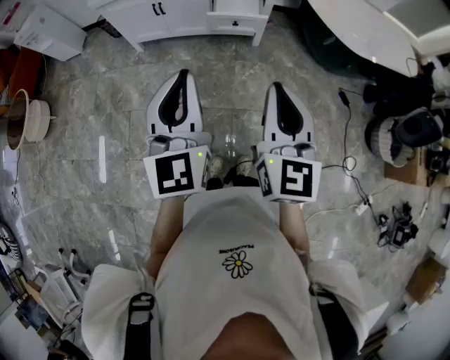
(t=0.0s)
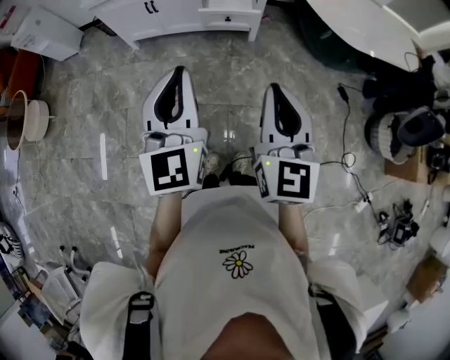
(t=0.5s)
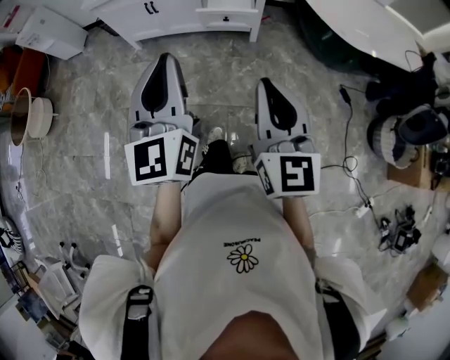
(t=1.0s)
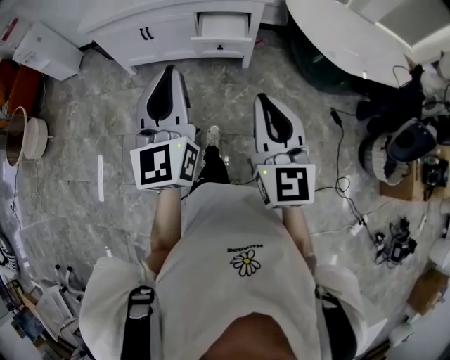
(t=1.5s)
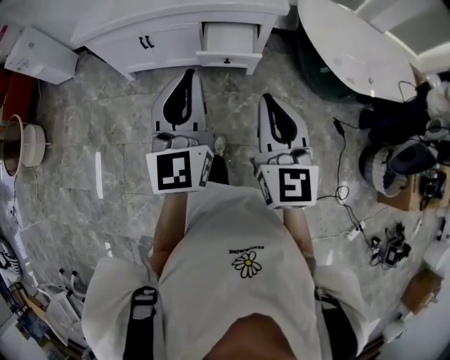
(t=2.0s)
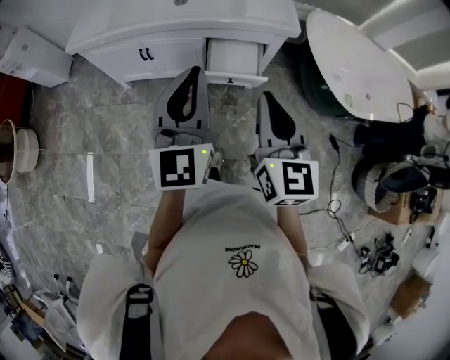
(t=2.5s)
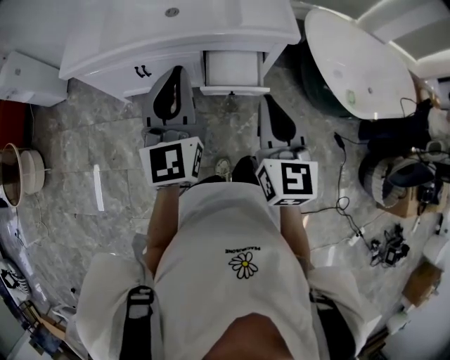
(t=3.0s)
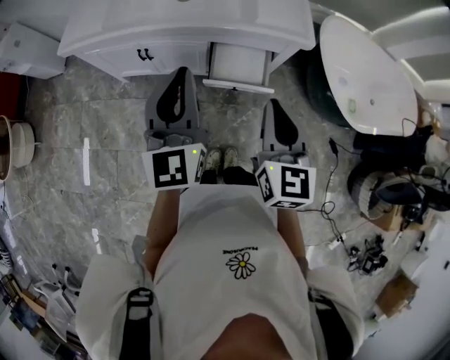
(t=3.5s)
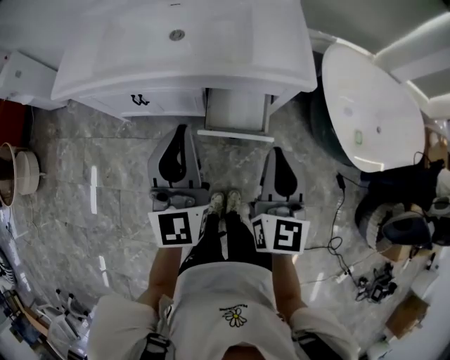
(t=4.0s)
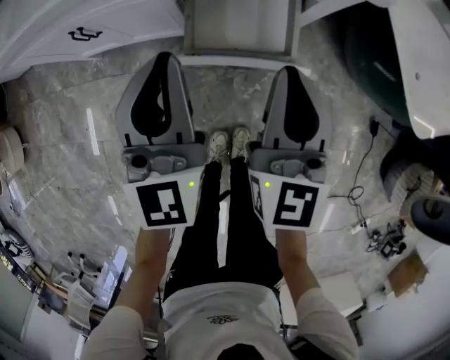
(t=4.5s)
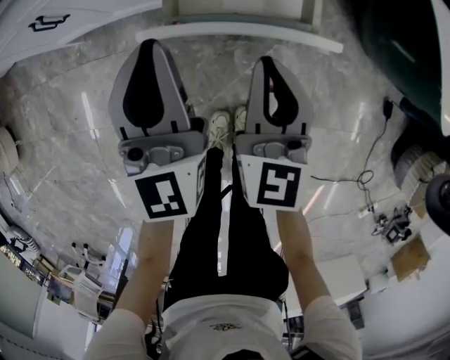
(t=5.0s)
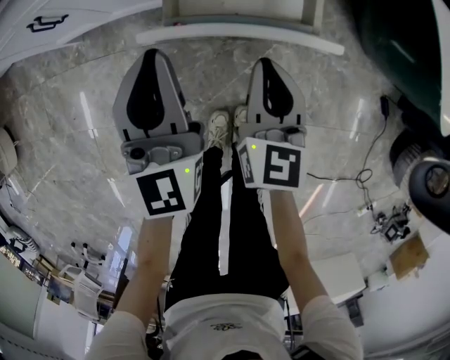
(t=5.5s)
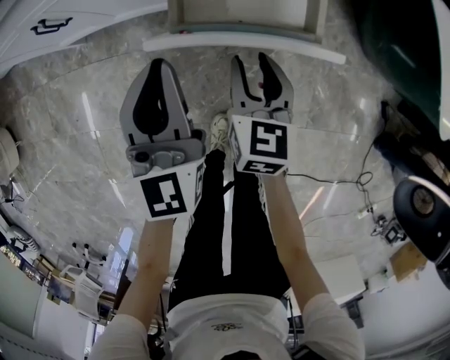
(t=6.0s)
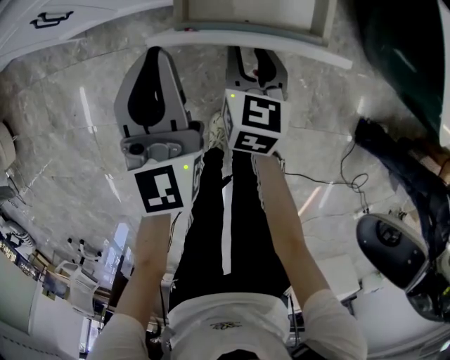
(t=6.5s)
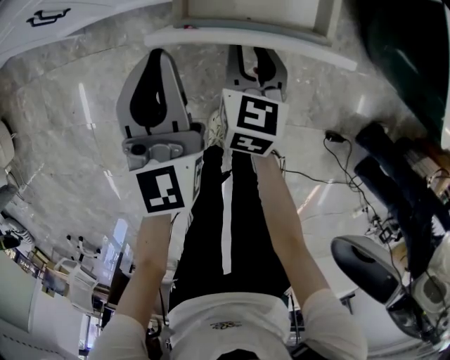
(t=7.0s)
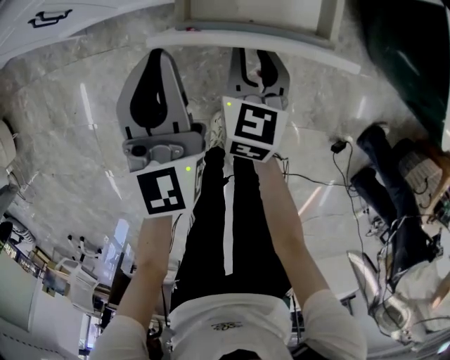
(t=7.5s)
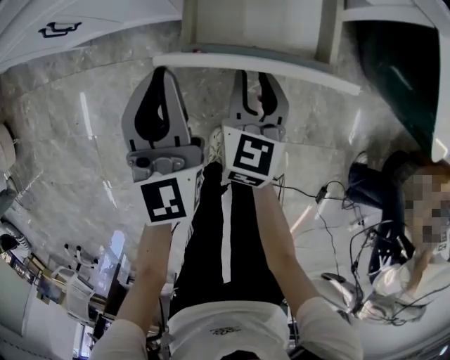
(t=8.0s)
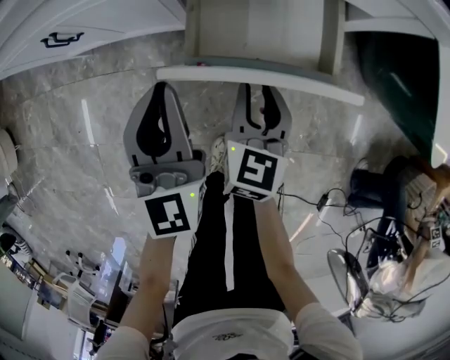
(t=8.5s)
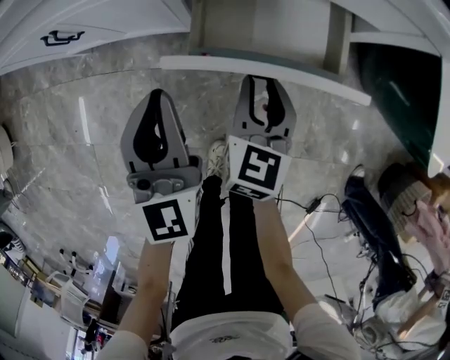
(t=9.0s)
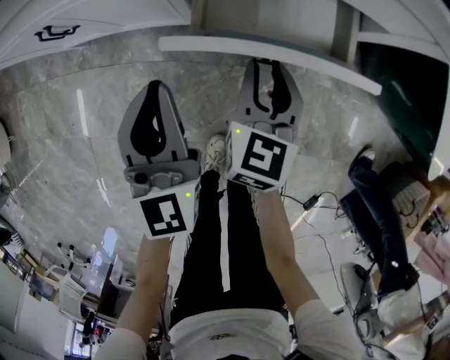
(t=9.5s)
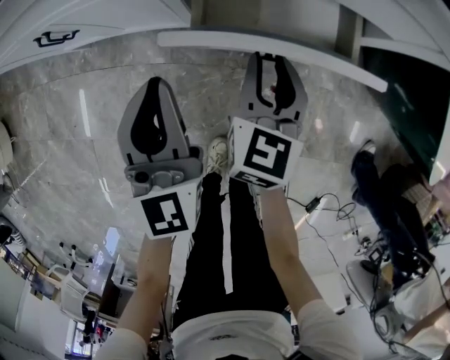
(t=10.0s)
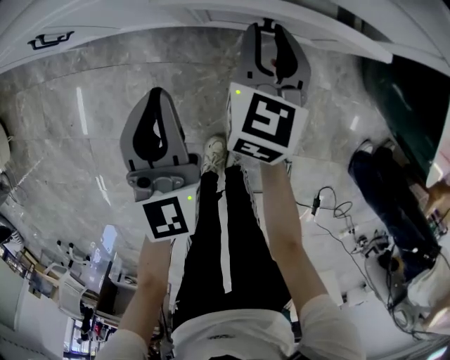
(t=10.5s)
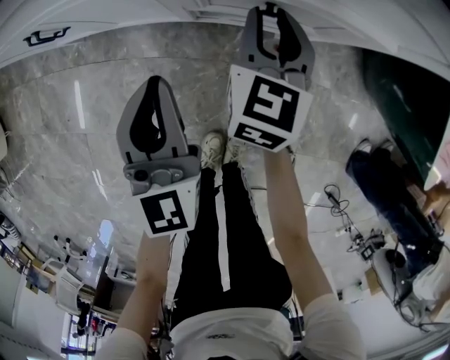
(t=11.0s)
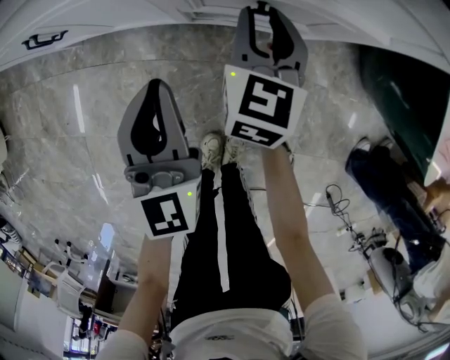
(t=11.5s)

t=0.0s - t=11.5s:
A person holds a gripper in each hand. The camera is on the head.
t=0.0s - t=2.0s: Both grippers move forward, about 20 cm.
t=2.0s - t=4.0s: The two grippers go approximately 25 cm forward.
t=4.0s - t=6.0s: Both grippers travel together downward, roughly 40 cm. The right gripper turns by some 20 degrees, and opens its fingers.
t=6.0s - t=7.5s: There are only small adjustments of the grippers.
t=7.5s - t=9.5s: The right gripper is displaced forward by about 5 cm.
t=9.5s - t=11.5s: The right gripper moves forward, some 10 cm.

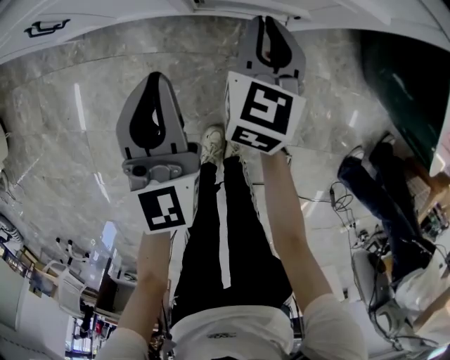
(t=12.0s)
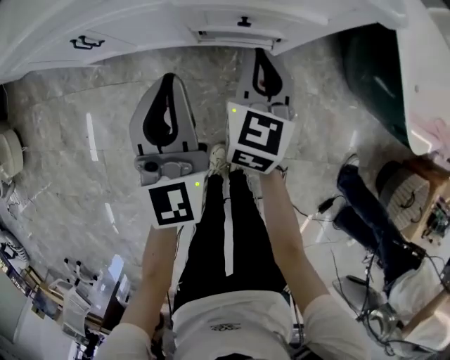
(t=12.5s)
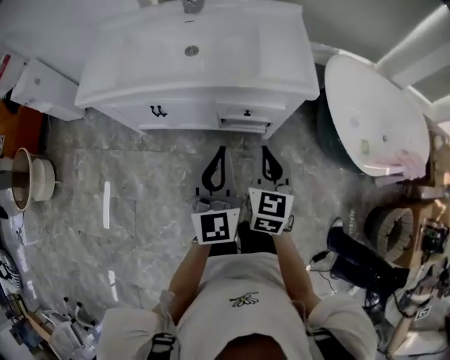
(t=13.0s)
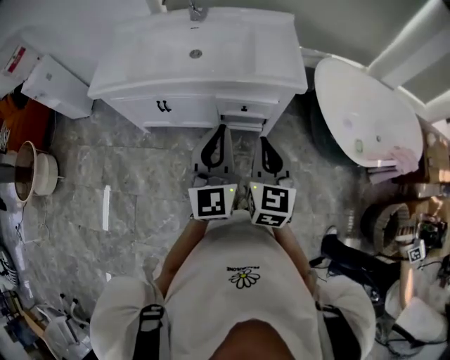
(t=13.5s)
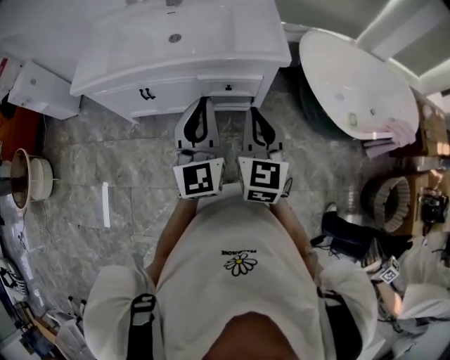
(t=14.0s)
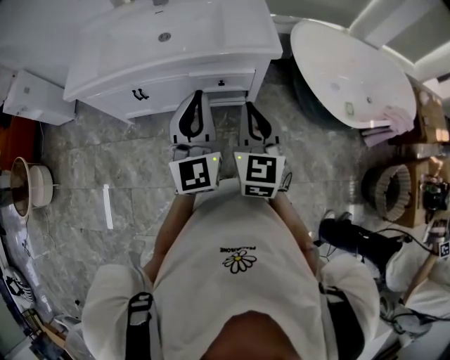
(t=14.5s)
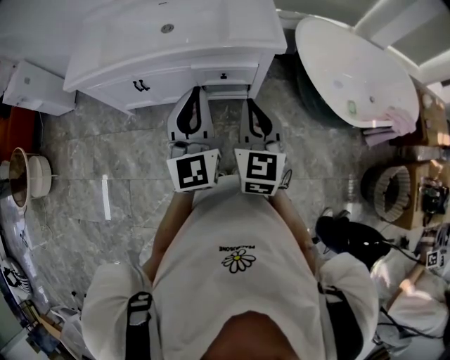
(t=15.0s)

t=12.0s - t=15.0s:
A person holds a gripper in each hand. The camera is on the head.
t=12.0s - t=13.5s: The left gripper shifts roughly 40 cm upward. The right gripper goes roughly 50 cm upward and backward.
t=13.5s - t=15.0s: The grippers stay close to where they were, moving slightly.

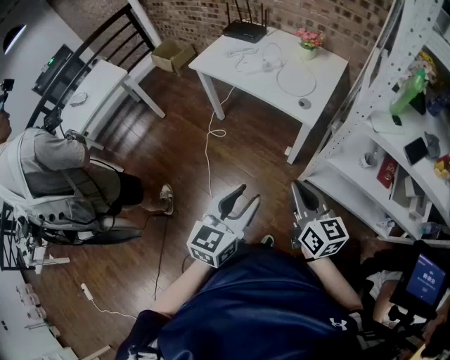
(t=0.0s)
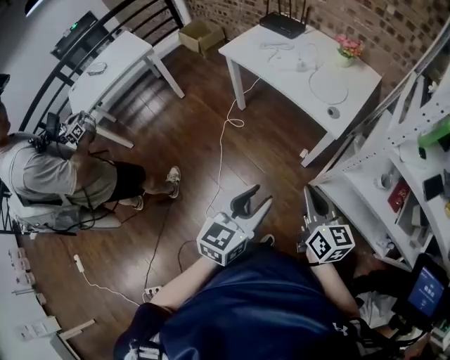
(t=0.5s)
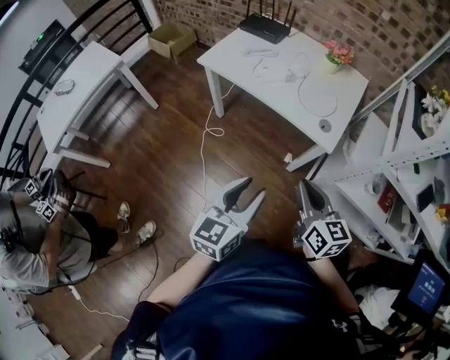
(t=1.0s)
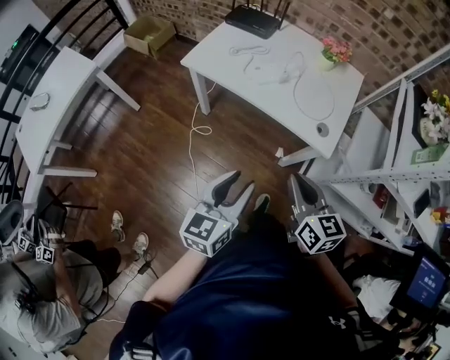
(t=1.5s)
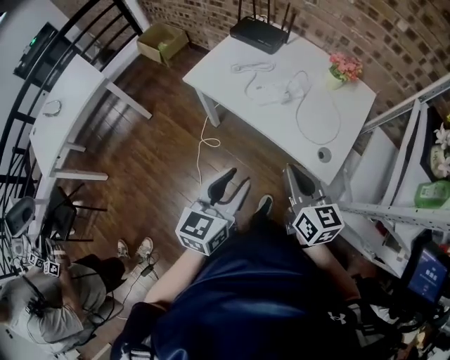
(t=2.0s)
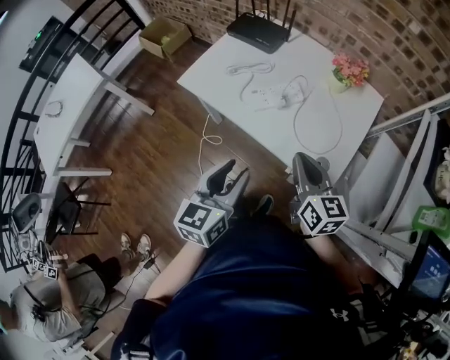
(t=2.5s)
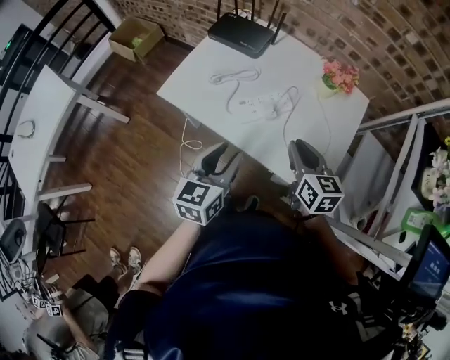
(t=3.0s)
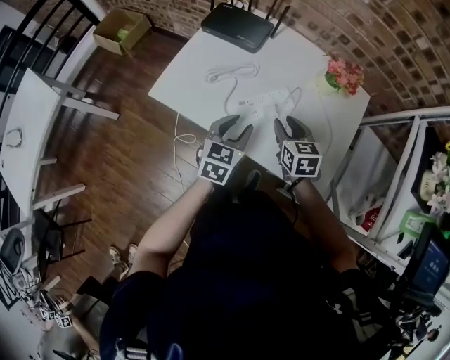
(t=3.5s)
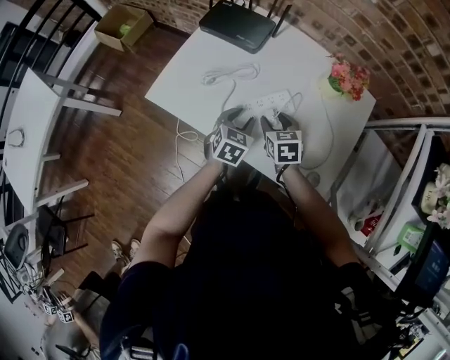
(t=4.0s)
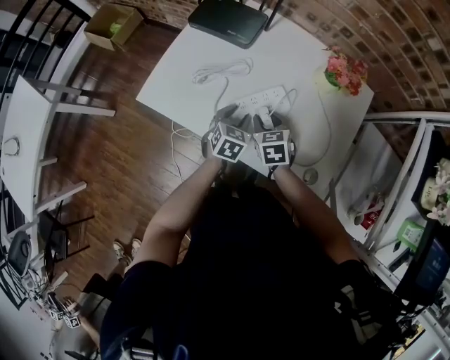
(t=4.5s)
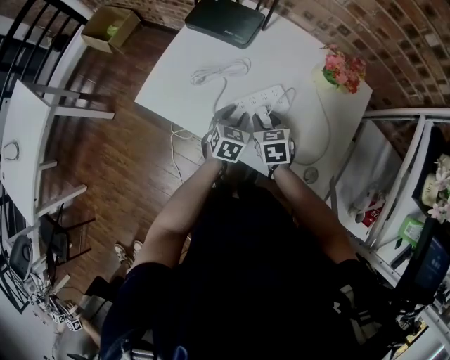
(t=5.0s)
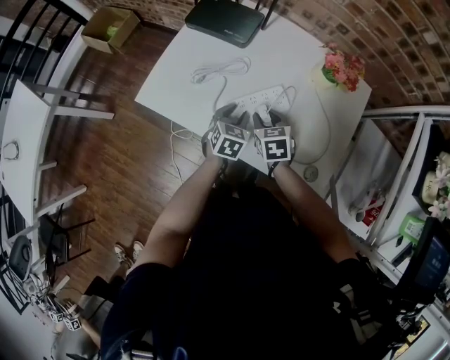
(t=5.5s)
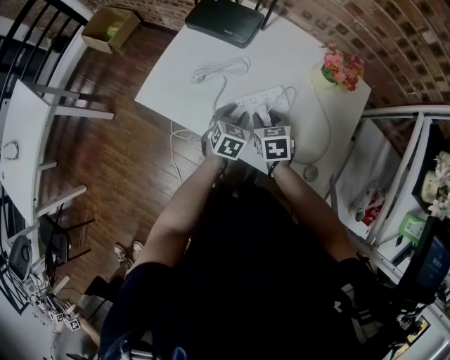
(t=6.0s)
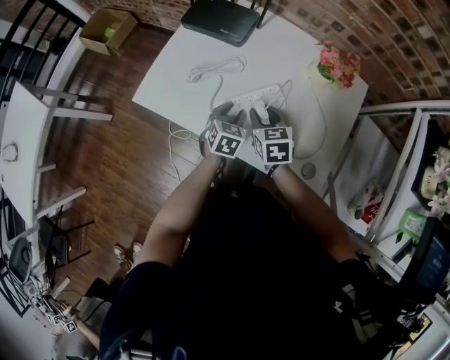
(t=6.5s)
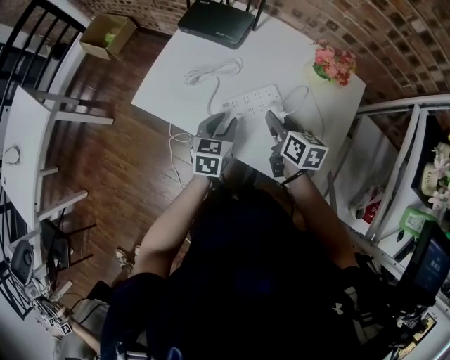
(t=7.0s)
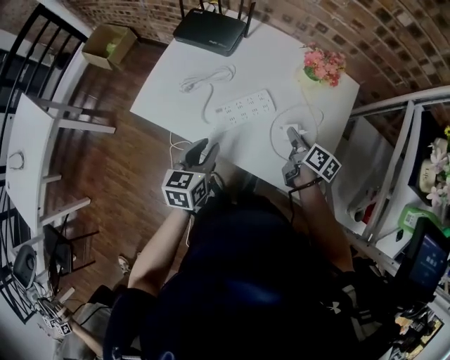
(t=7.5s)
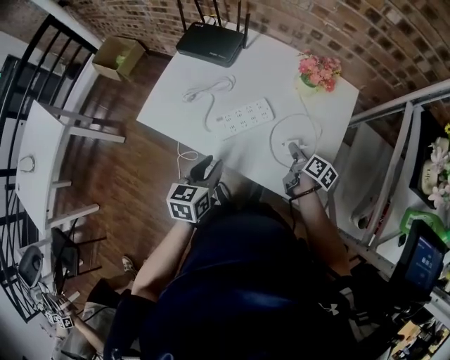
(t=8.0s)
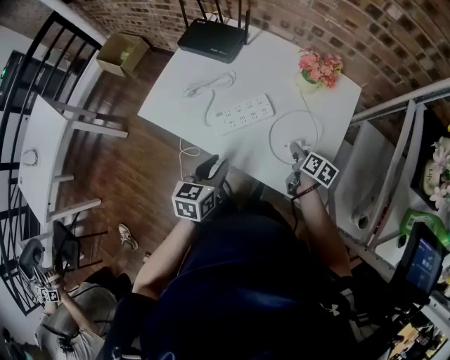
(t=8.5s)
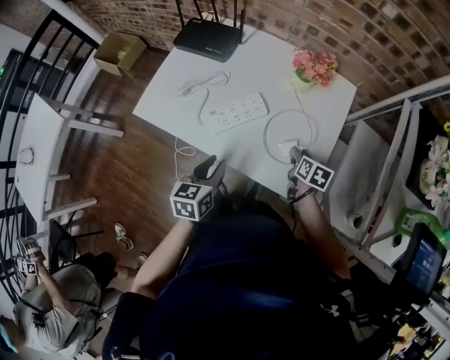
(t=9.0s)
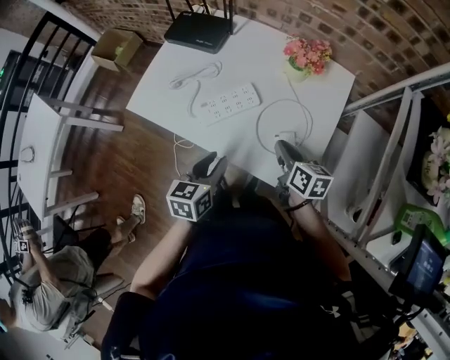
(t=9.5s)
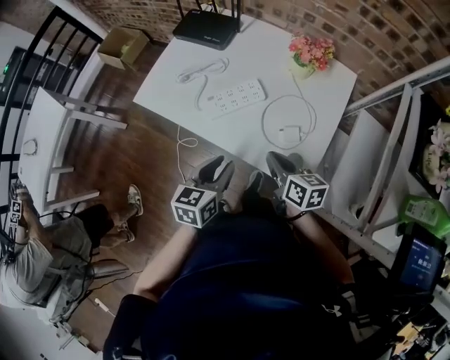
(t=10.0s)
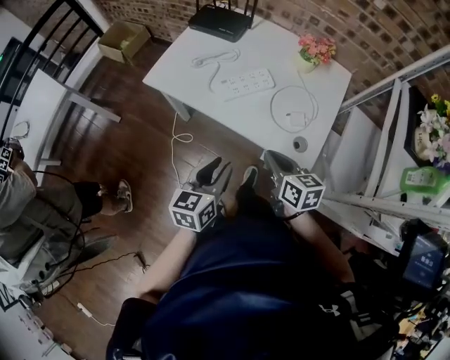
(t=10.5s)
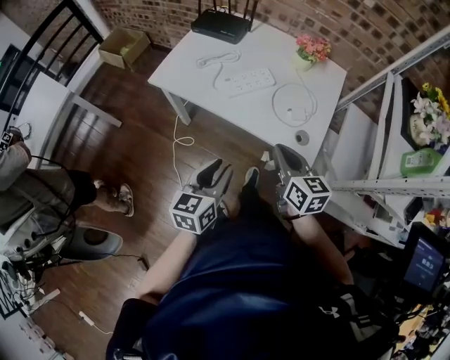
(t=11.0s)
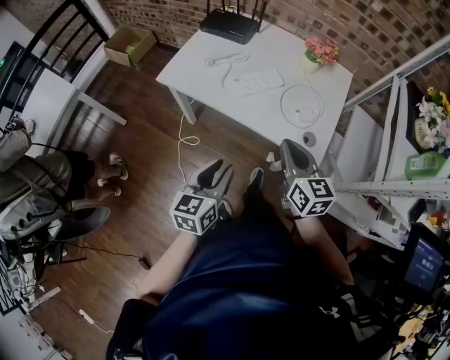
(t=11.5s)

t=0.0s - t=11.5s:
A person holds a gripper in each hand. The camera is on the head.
t=0.0s - t=2.0s: The two grippers go roughly 35 cm forward.
t=2.0s - t=4.0s: The two grippers go approximately 40 cm forward and downward. The left gripper swivels some 30 degrees. Meanwhile the right gripper tips its fingers downward by about 30 degrees, and opens.
t=4.0s - t=6.0s: The grippers move only a little.
t=6.0s - t=7.5s: The left gripper moves upward and backward, roughly 15 cm, and rotates approximately 30 degrees, while the right gripper heads to the right, covering roughly 15 cm, and twists about 50 degrees clockwise, seen from behind.
t=7.5s - t=9.5s: The left gripper travels to the right and backward by about 10 cm; the right gripper moves backward, about 5 cm, and closes its fingers.
t=9.5s - t=11.5s: The right gripper goes about 25 cm backward, upward and to the left, and turns by some 30 degrees. The left gripper travels backward and to the left by approximately 20 cm.

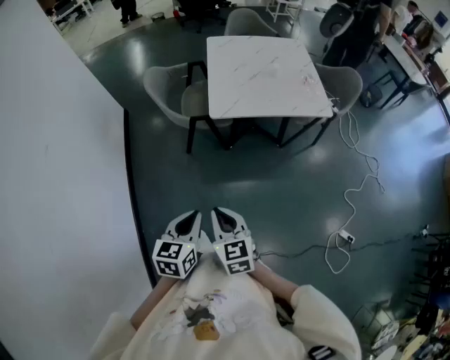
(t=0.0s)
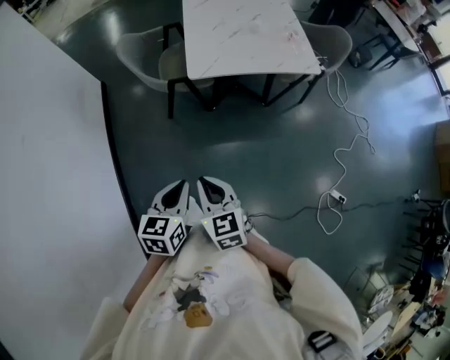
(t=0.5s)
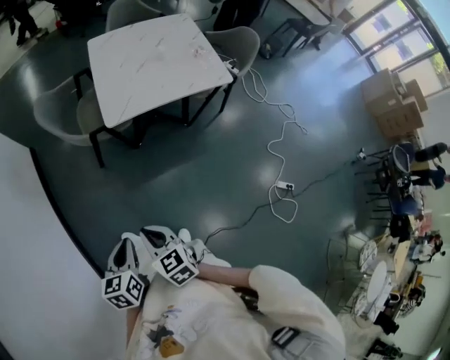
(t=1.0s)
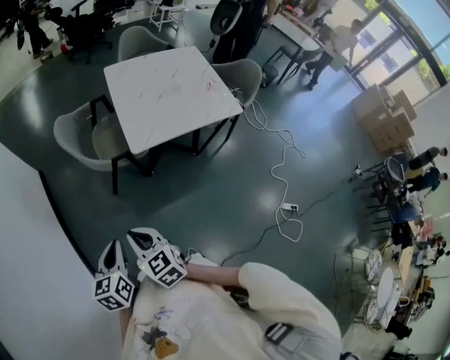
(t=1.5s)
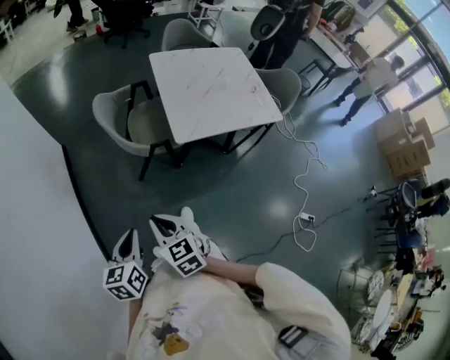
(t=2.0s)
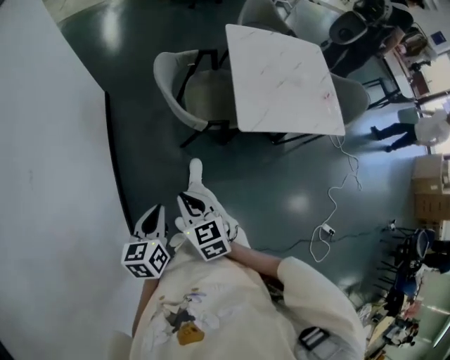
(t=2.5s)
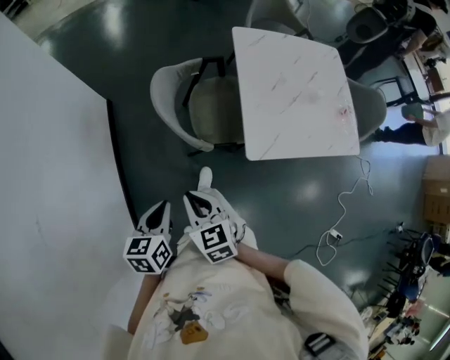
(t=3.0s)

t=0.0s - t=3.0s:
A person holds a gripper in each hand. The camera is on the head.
t=0.0s - t=1.5s: Both grippers move to the left and forward, about 20 cm.
t=1.5s - t=3.0s: Both grippers move forward and to the left, approximately 25 cm.
